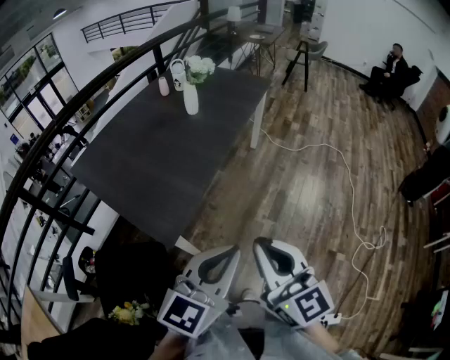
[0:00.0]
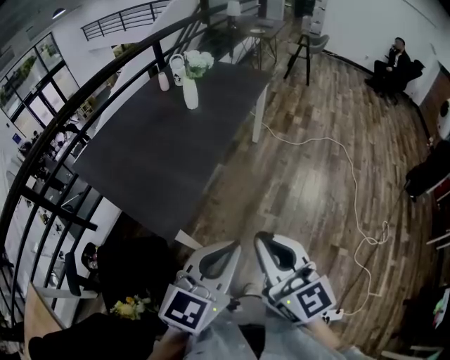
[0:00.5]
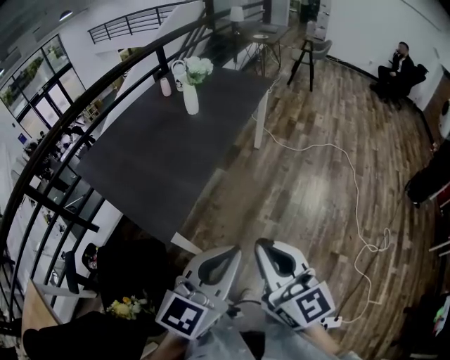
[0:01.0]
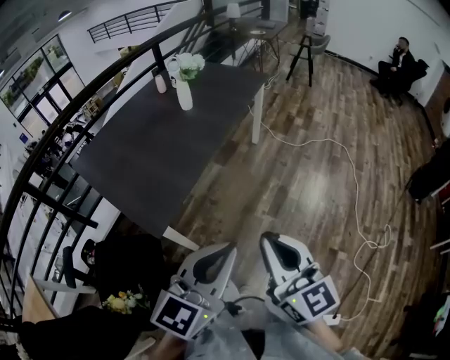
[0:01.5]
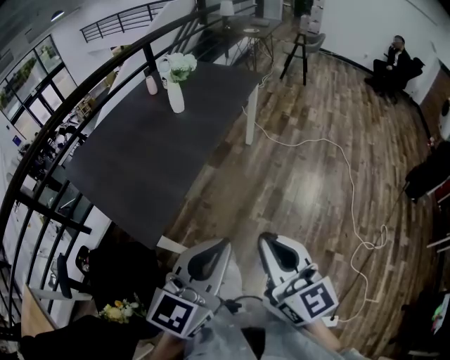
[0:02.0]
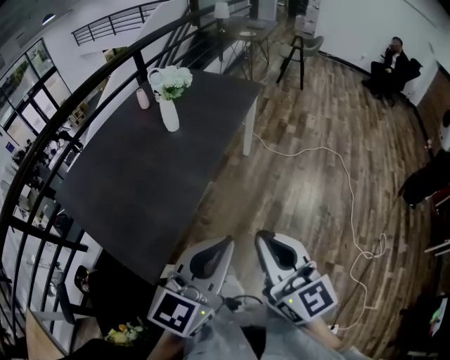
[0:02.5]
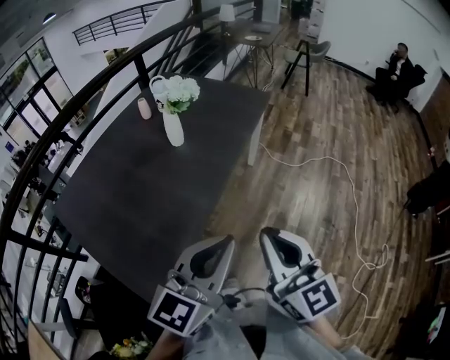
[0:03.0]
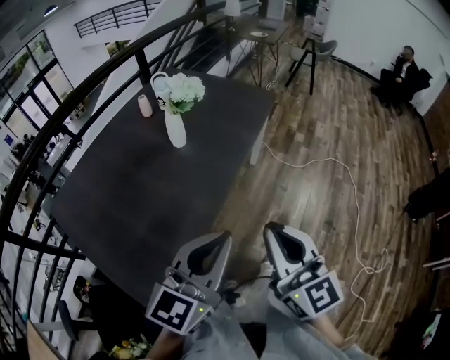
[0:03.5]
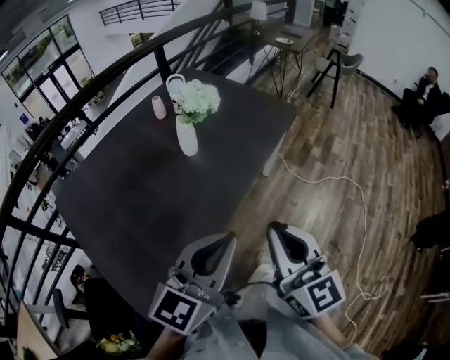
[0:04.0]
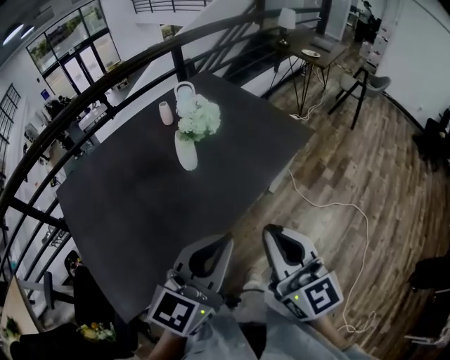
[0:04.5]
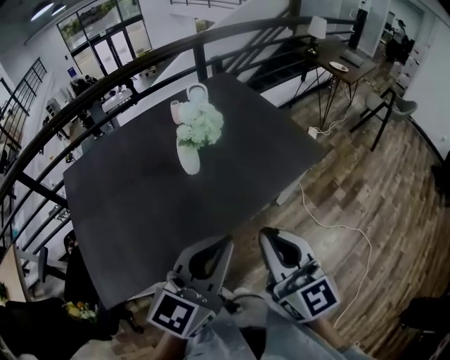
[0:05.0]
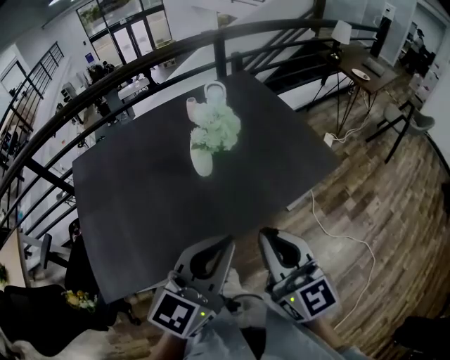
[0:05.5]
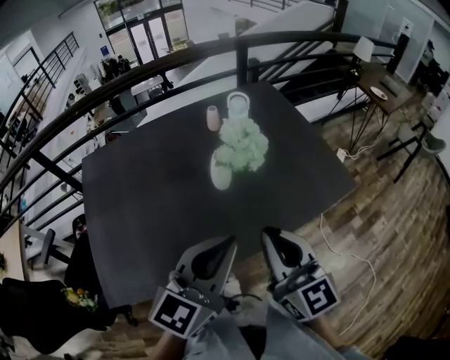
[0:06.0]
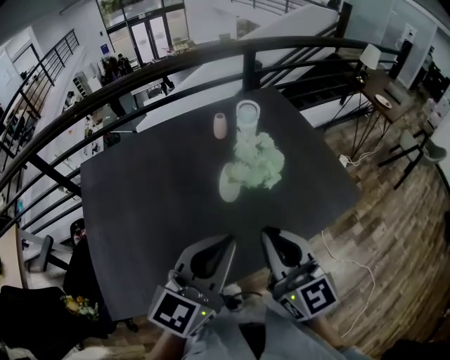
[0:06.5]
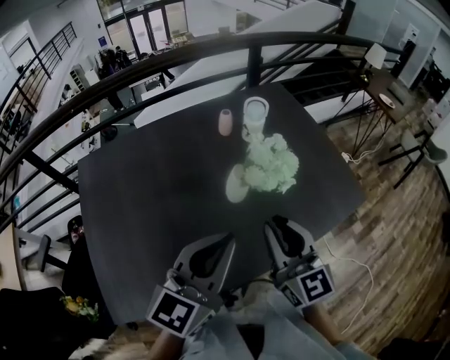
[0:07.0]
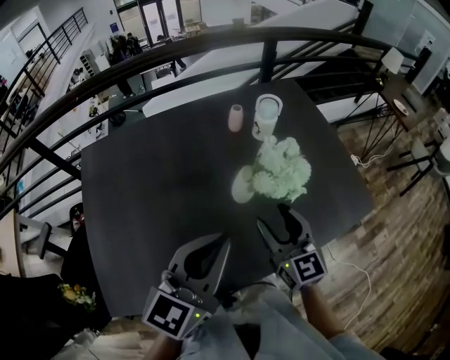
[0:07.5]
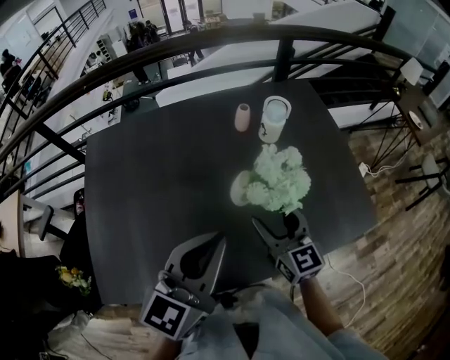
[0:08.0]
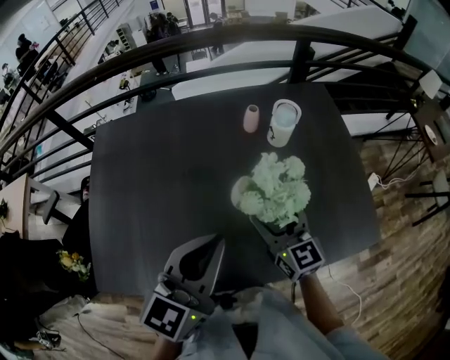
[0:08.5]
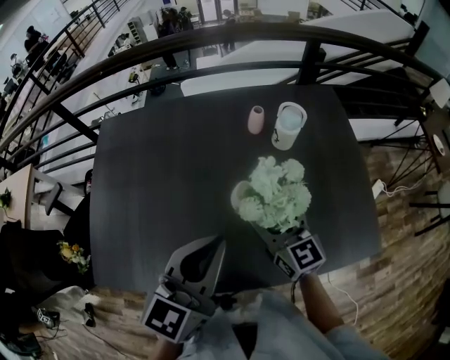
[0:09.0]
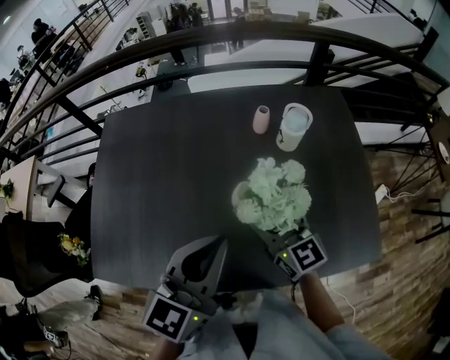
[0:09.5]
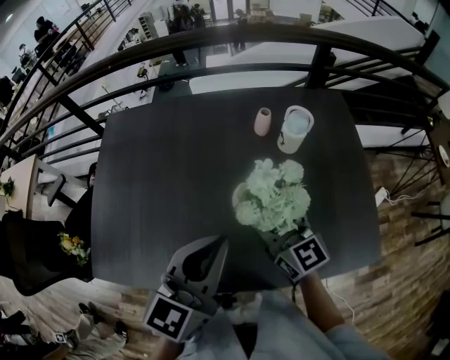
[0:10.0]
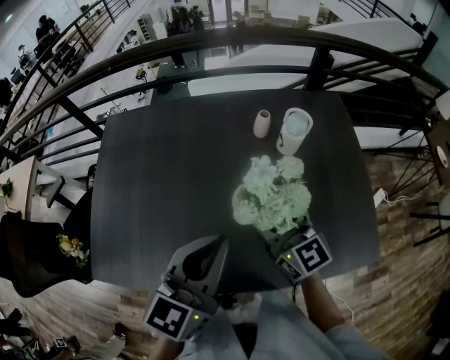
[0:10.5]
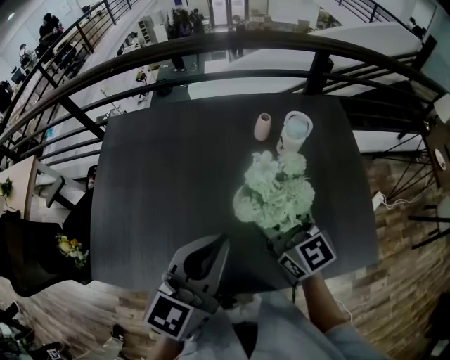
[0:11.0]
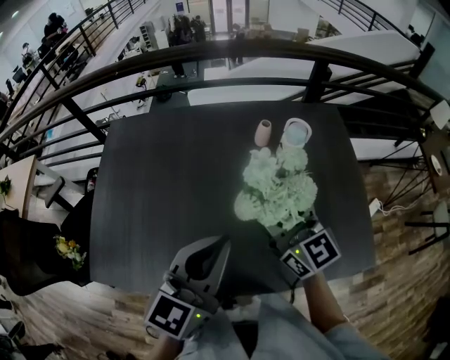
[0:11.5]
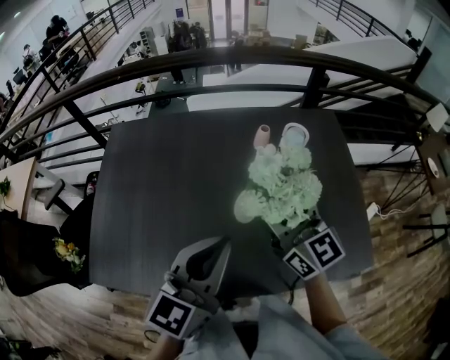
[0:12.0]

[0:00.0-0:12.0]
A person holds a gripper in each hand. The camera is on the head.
0:00.0 to 0:02.0: The grippers both shift to the right by roughly 5 cm.
0:02.0 to 0:04.0: The grippers both shift forward by about 35 cm.
0:04.0 to 0:06.0: The right gripper changes place by about 25 cm, and swivels about 30 degrees. Meanwhile the left gripper moves roughly 20 cm, and rotates approximately 30 degrees.
0:06.0 to 0:08.0: The left gripper heads forward and to the left, covering about 15 cm; the right gripper travels forward and downward by about 25 cm, and opens.
0:08.0 to 0:10.0: The right gripper shifts approximately 5 cm forward, and turns by about 20 degrees.
0:10.0 to 0:12.0: The right gripper goes some 10 cm upward.

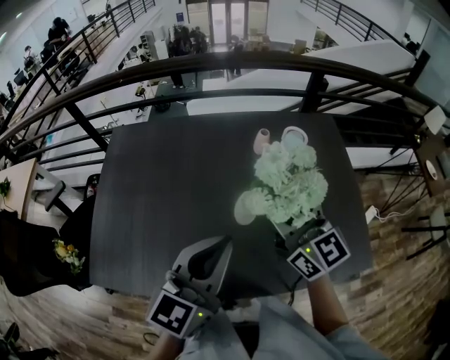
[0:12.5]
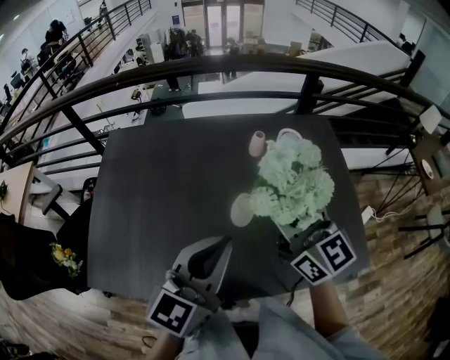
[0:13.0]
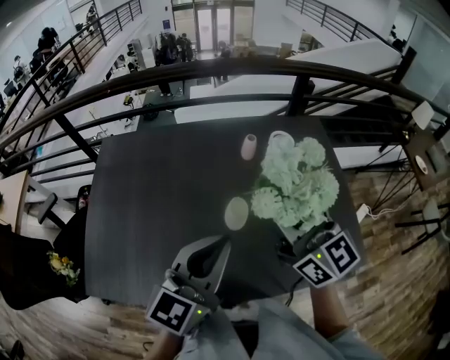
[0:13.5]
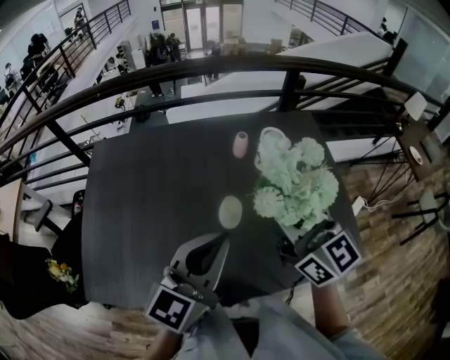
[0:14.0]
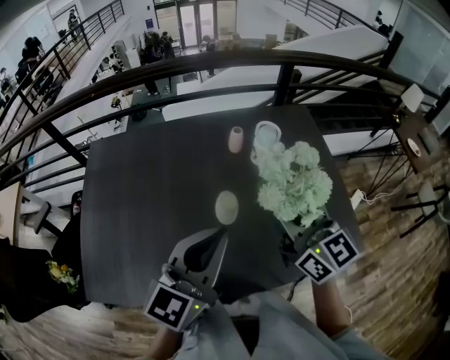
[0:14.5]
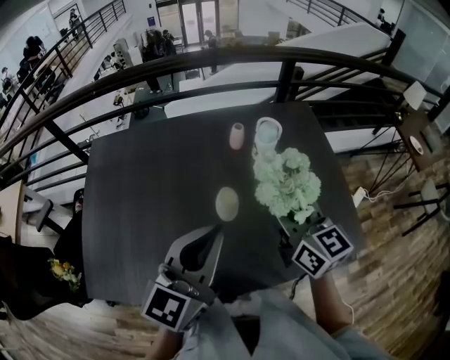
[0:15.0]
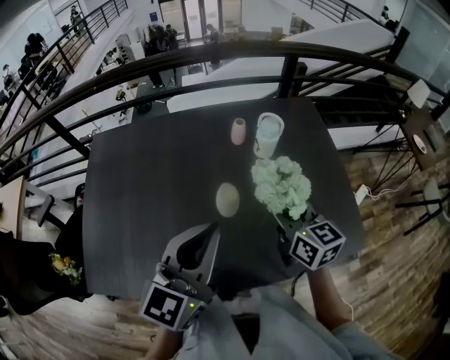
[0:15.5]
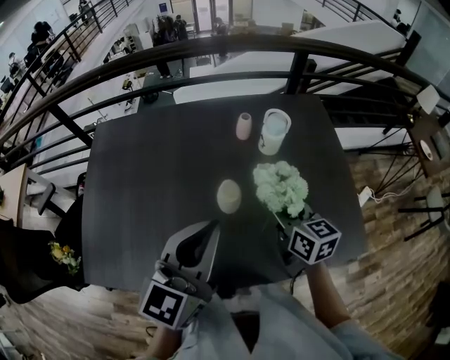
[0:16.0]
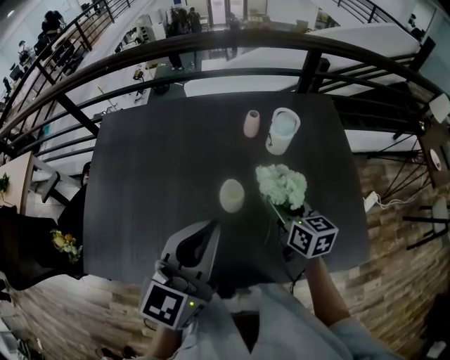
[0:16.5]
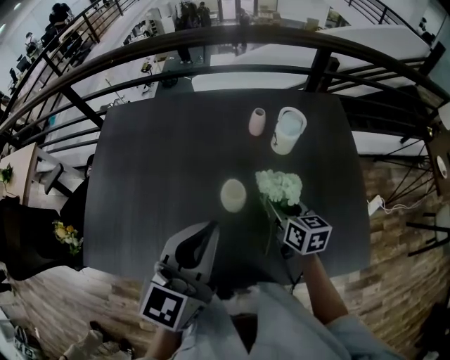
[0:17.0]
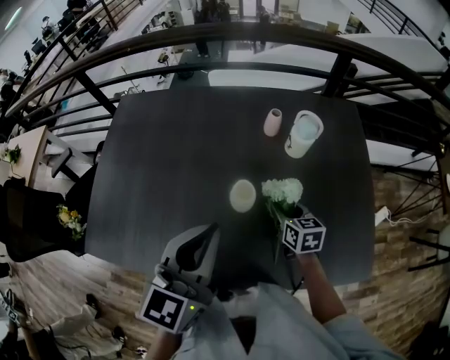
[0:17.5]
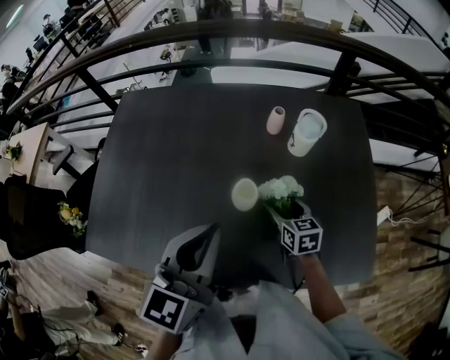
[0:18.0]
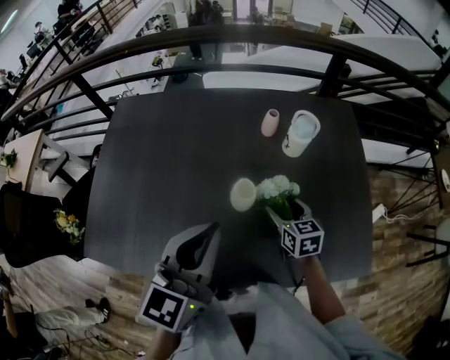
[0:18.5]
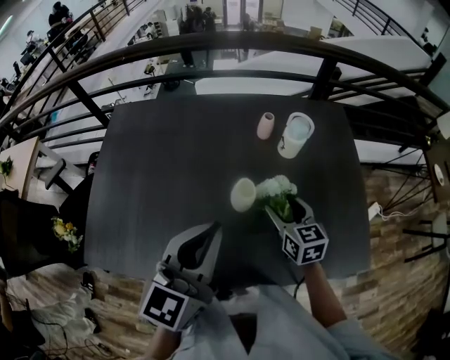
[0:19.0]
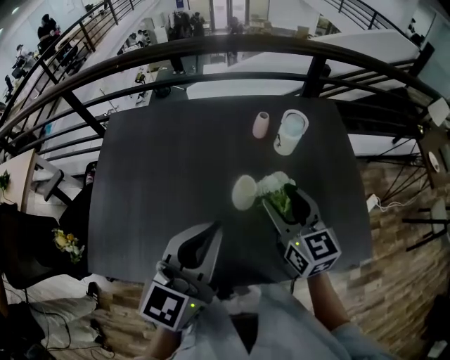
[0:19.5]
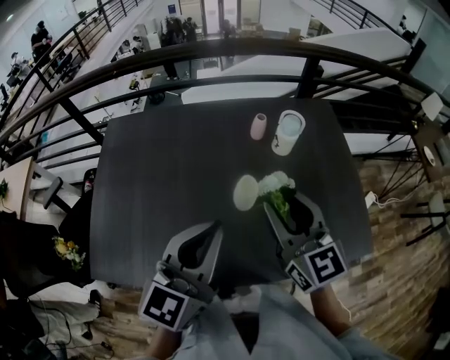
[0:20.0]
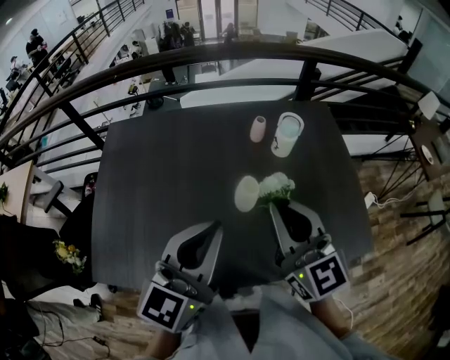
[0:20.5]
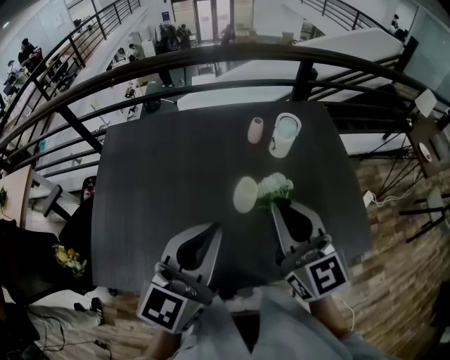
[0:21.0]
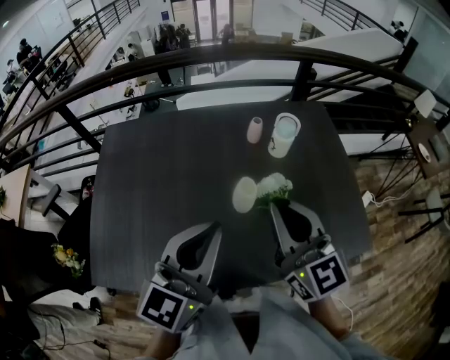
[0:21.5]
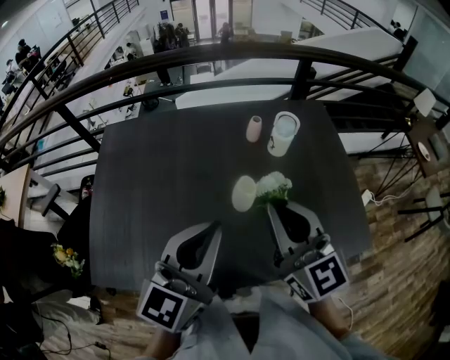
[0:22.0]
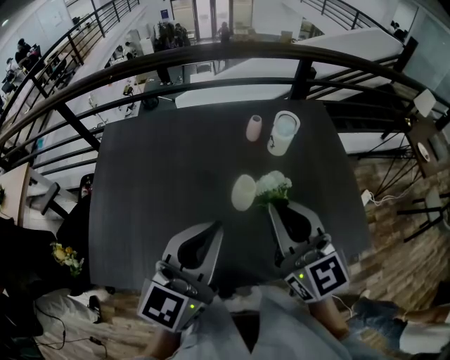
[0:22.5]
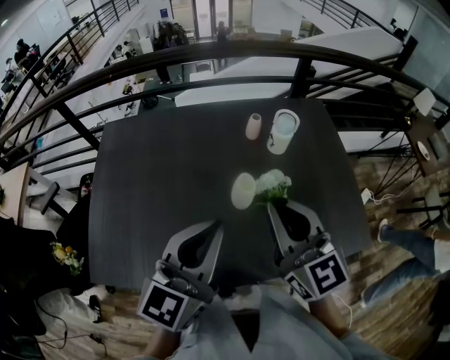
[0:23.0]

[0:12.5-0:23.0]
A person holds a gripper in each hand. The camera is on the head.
0:12.5 to 0:14.5: The right gripper shifts about 5 cm to the right.
0:14.5 to 0:16.5: The right gripper heads downward, covering some 20 cm, and rotates roughly 30 degrees.
0:16.5 to 0:19.0: The right gripper travels downward and back again, about 10 cm each way, and opens.
0:19.0 to 0:21.0: The right gripper travels upward by approximately 20 cm, rotates about 30 degrees, and closes.
0:21.0 to 0:23.0: Both grippers stay put.

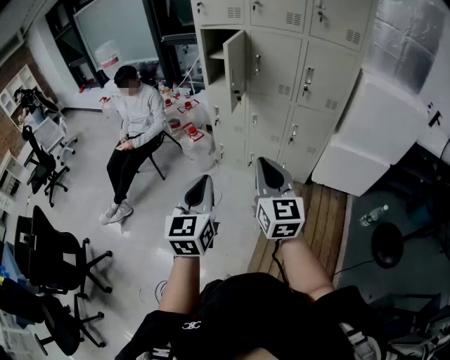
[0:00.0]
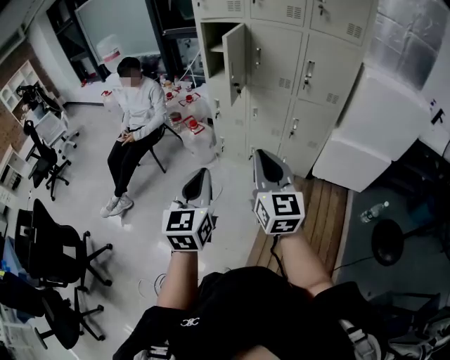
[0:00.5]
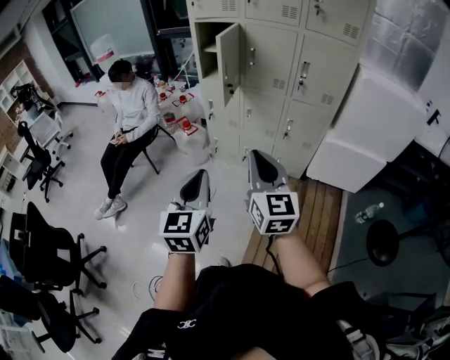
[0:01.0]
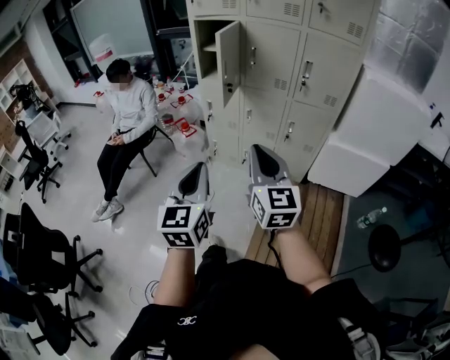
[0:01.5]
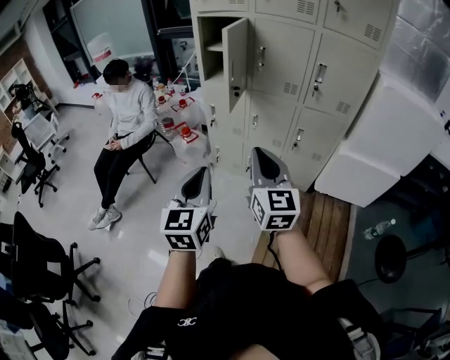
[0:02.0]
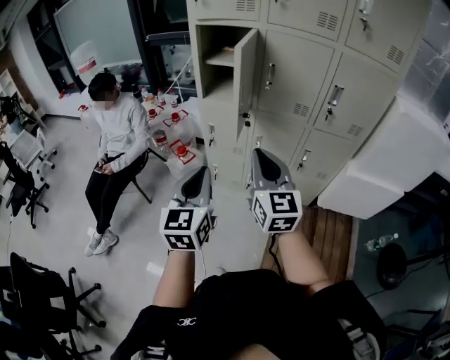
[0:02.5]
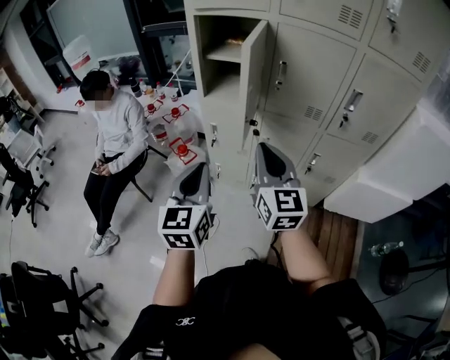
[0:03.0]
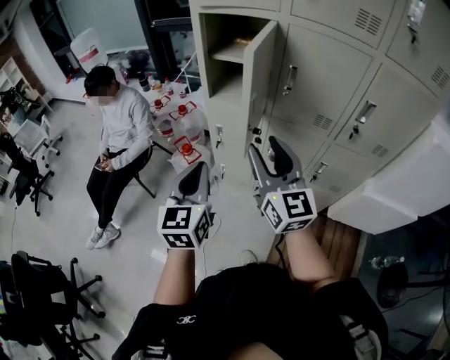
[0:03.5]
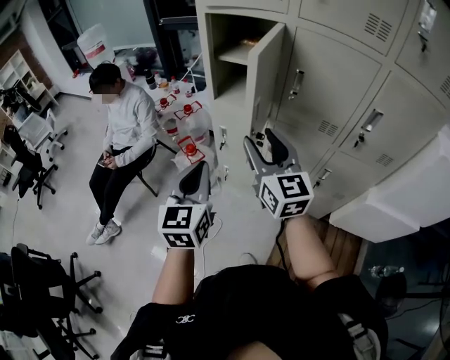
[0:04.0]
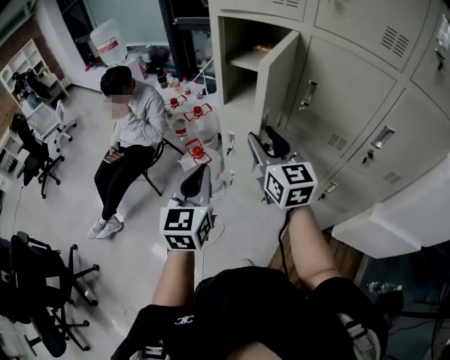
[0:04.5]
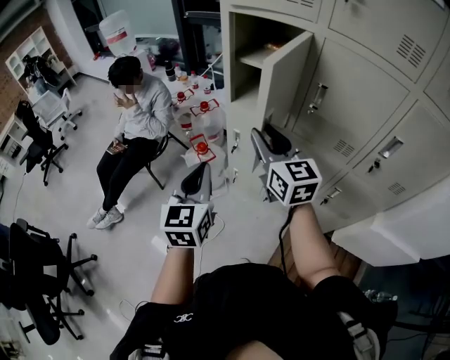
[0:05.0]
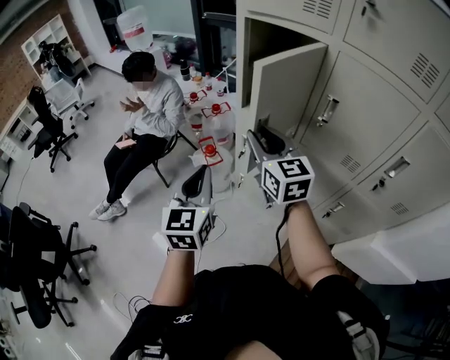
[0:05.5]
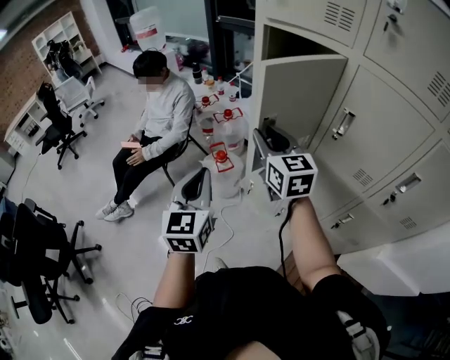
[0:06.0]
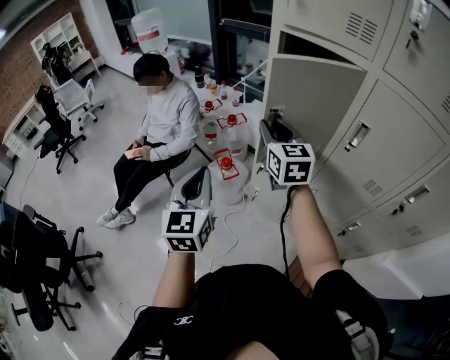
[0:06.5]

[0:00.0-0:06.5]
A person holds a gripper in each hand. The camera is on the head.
0:00.0 to 0:02.0: The grippers both shift forward and downward by some 15 cm.
0:02.0 to 0:04.5: The grippers both shift forward by roughly 35 cm. The right gripper opens up.
0:04.5 to 0:06.5: The right gripper travels forward and to the left by roughly 20 cm, and closes, while the left gripper is displaced to the left and forward by approximately 15 cm.
